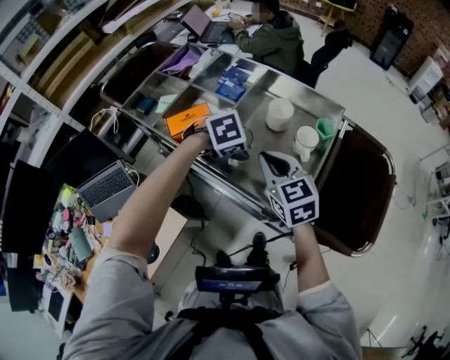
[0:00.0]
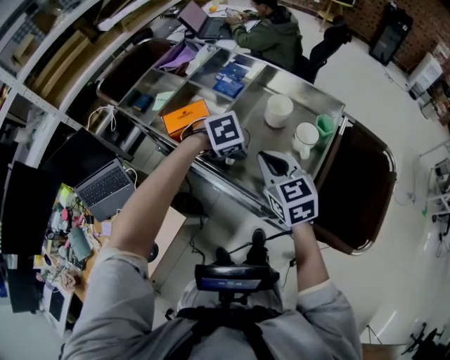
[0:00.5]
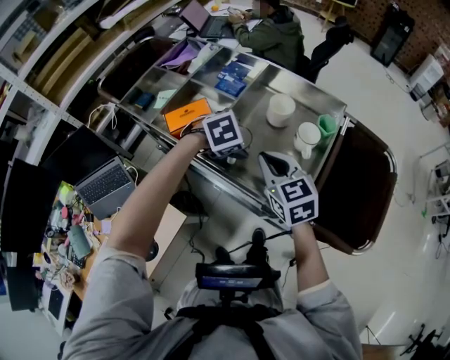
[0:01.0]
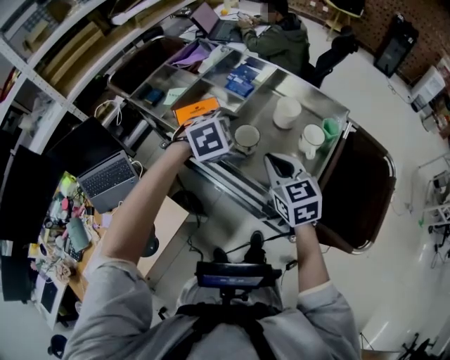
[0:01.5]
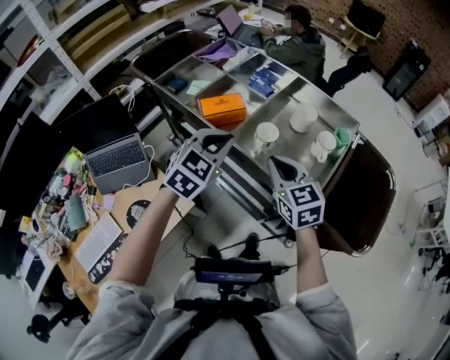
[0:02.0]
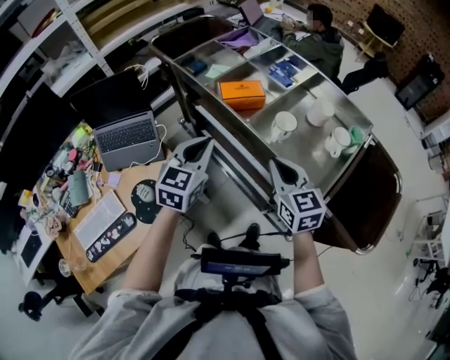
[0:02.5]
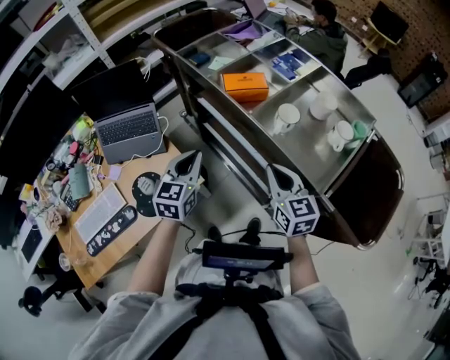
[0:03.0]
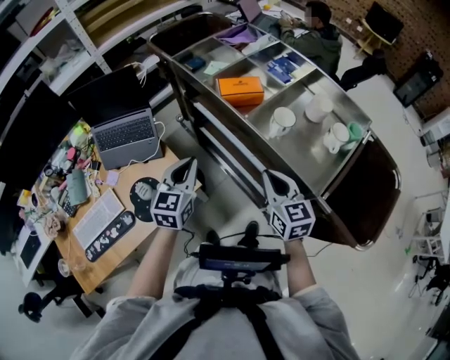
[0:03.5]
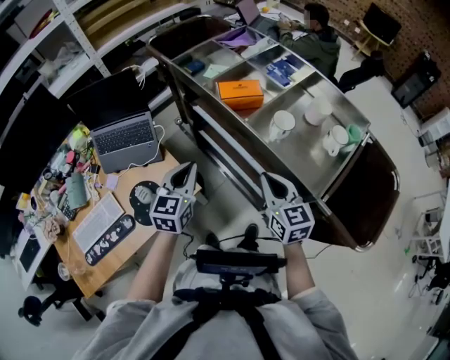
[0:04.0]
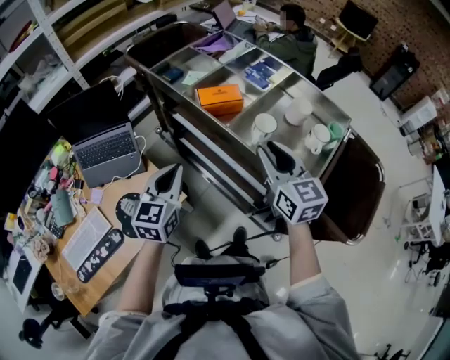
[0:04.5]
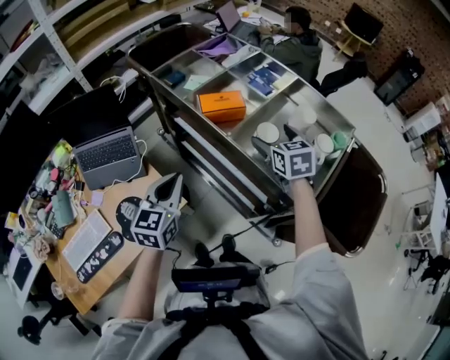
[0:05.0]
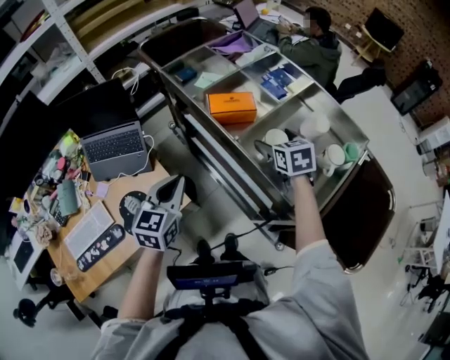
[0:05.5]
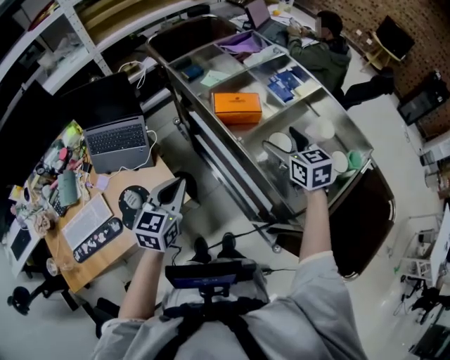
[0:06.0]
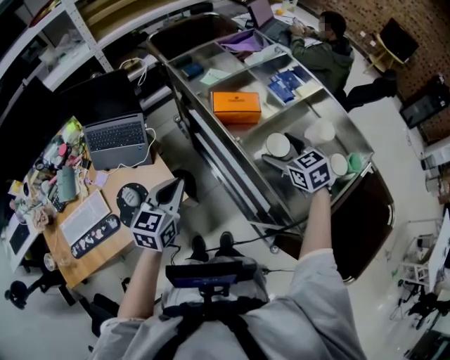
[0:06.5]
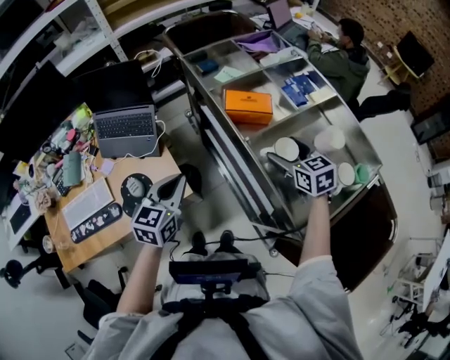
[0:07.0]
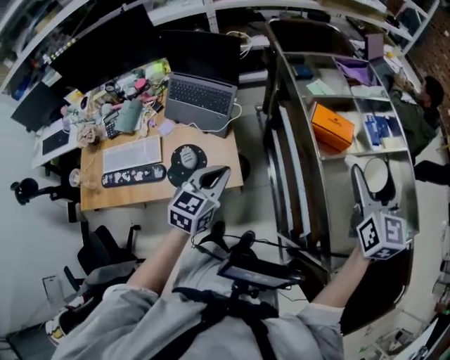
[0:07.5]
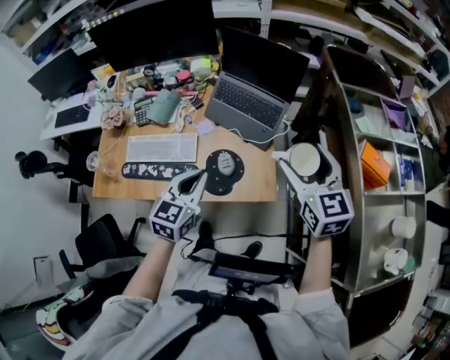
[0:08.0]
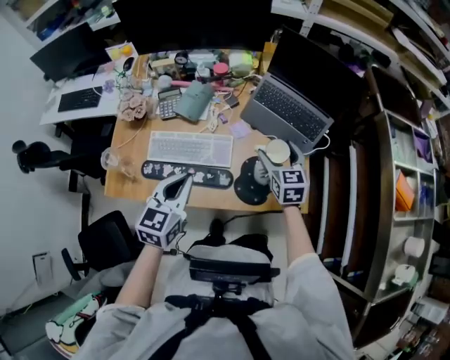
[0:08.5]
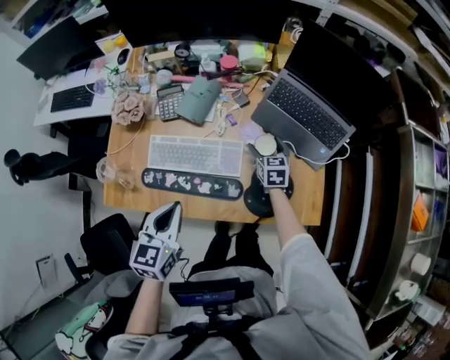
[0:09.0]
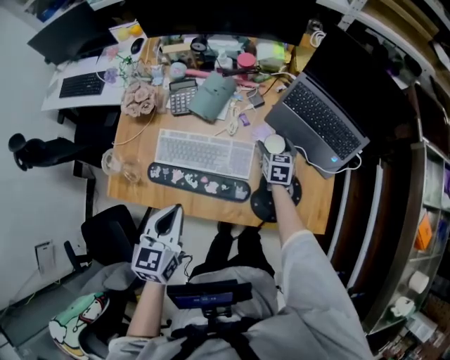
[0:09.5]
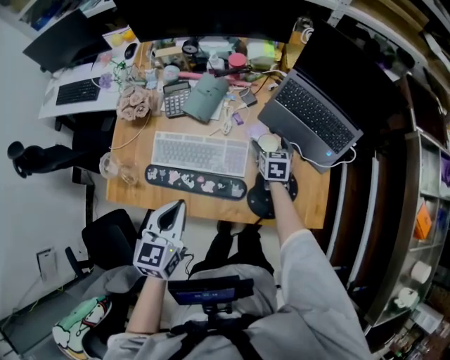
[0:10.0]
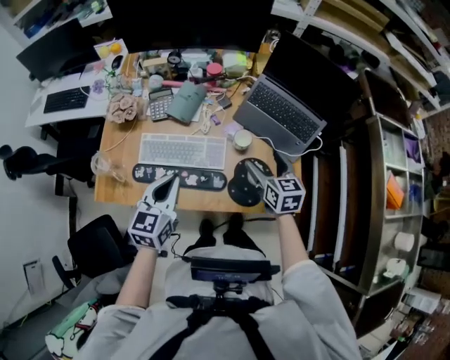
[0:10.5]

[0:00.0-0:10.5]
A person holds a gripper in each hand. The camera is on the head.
0:00.0 to 0:02.0: The right gripper moves backward, some 5 cm. The left gripper travels upward, backward and to the left by roughly 20 cm, tips its fingers upward by about 40 degrees, and closes.
0:02.0 to 0:04.0: The left gripper is displaced to the left, downward and backward by about 20 cm, and turns by approximately 40 degrees; the right gripper travels backward, to the left and downward by roughly 10 cm.
0:04.0 to 0:06.5: The right gripper shifts some 20 cm forward and to the right, turns by roughly 30 degrees, and opens up.
0:06.5 to 0:08.5: Both grippers are carried approximately 60 cm. The right gripper turns by some 20 degrees, while the left gripper rotates about 40 degrees.
0:08.5 to 0:10.5: The right gripper travels downward and back again, roughly 20 cm each way.

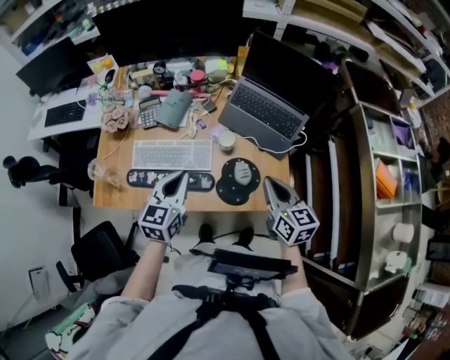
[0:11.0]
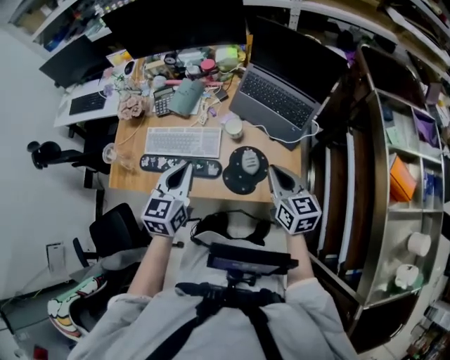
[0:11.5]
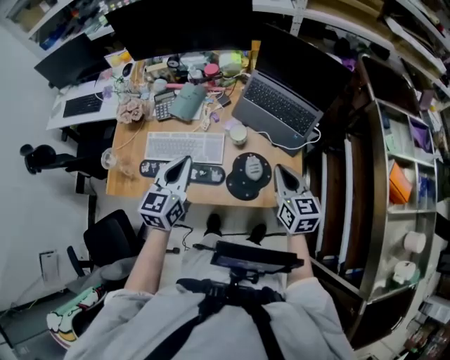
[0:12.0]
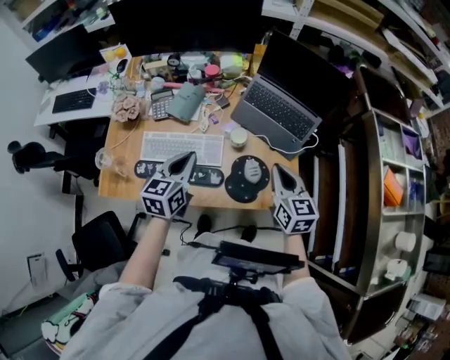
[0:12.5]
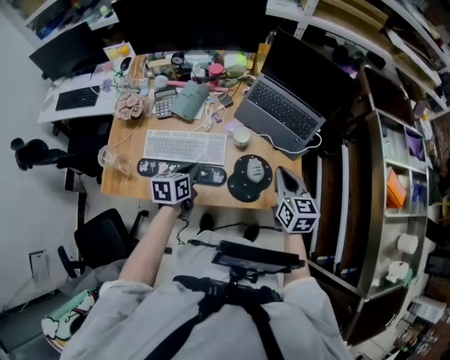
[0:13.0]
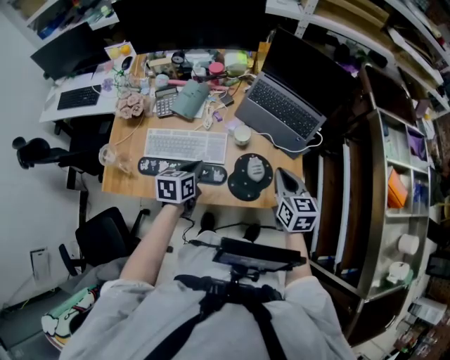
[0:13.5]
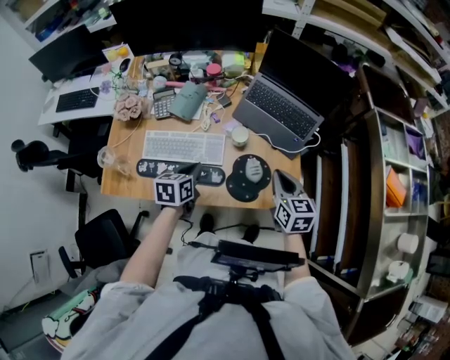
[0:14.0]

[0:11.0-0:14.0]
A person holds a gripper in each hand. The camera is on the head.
0:11.0 to 0:12.5: The grippers move only a little.
0:12.5 to 0:14.0: The left gripper is displaced downward by about 10 cm, and changes its angle by approximately 20 degrees.

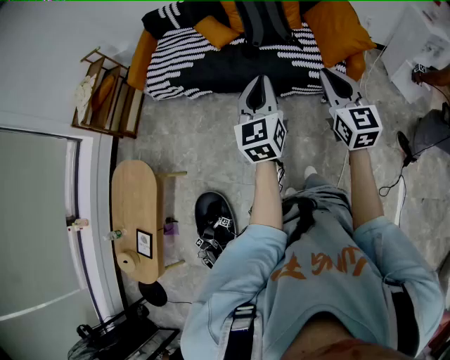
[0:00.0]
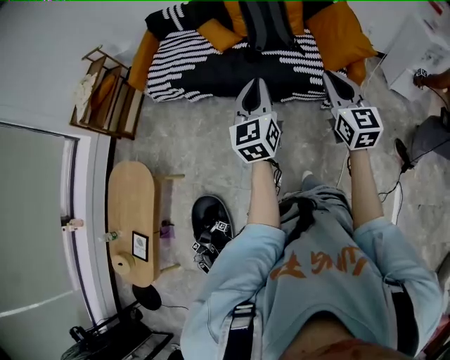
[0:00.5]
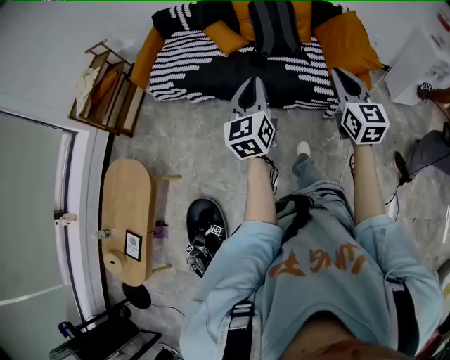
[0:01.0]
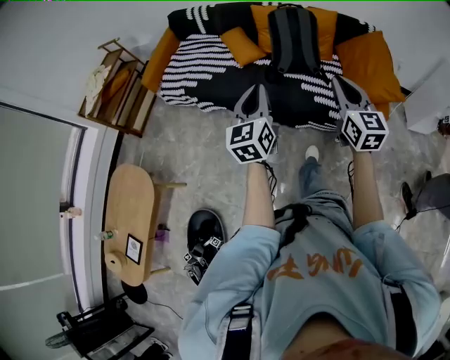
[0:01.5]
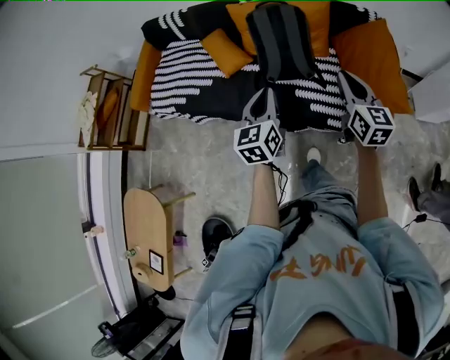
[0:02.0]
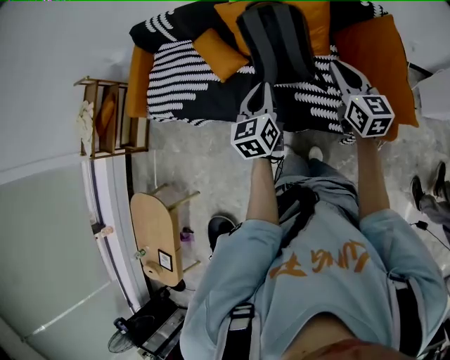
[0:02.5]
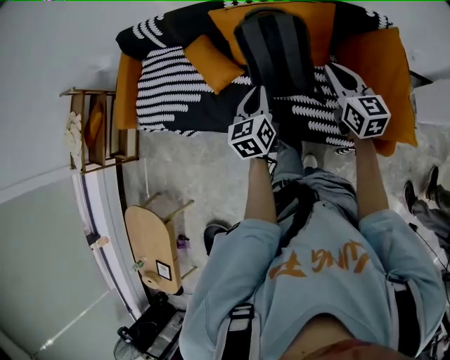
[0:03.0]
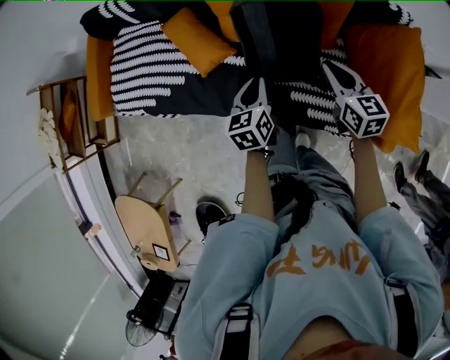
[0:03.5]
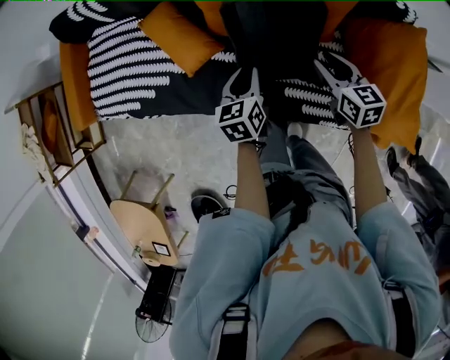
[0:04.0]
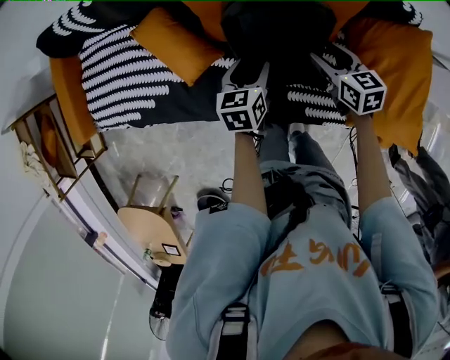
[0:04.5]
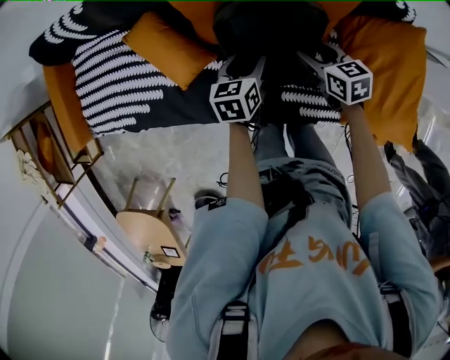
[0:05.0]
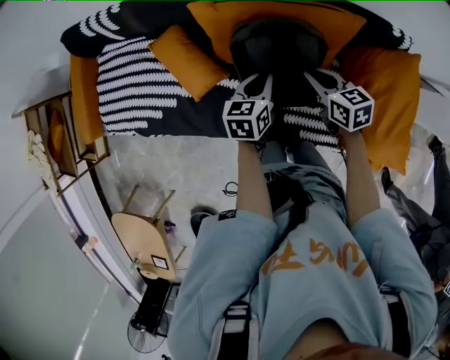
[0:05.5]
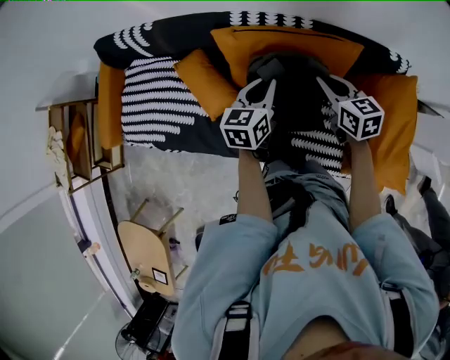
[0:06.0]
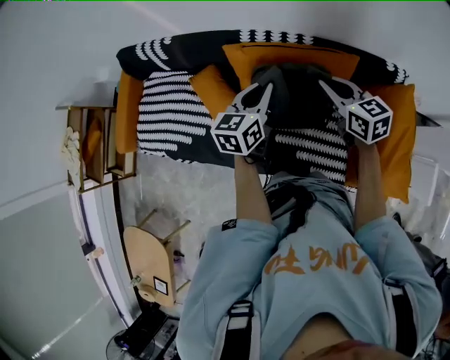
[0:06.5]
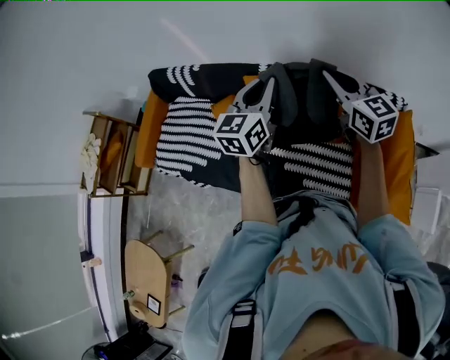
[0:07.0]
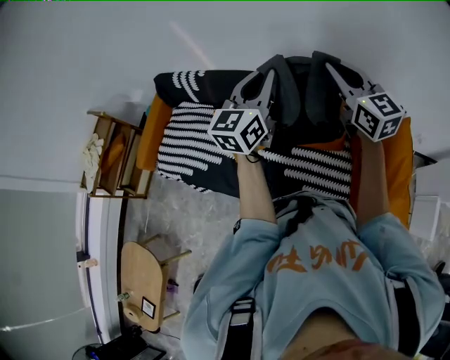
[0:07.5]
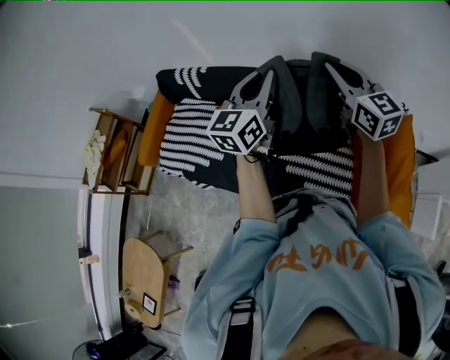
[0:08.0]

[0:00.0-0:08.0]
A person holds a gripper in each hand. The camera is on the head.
0:00.0 to 0:02.0: The grippers both shift forward by approximately 40 cm.
0:02.0 to 0:04.0: The two grippers go some 40 cm forward and downward. The right gripper swivels approximately 30 degrees, and opens up, while the left gripper turns by approximately 30 degrees.
0:04.0 to 0:06.0: The right gripper travels forward and upward by roughly 15 cm, and closes. The left gripper goes approximately 20 cm upward, forward and to the right, and opens and closes again.
0:06.0 to 0:08.0: Both grippers move upward, approximately 30 cm. The left gripper changes its angle by approximately 30 degrees. The right gripper points its fingers roughly 30 degrees further upward.

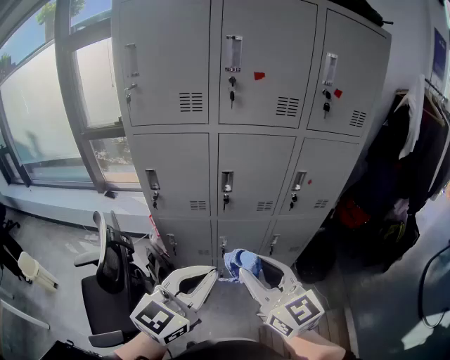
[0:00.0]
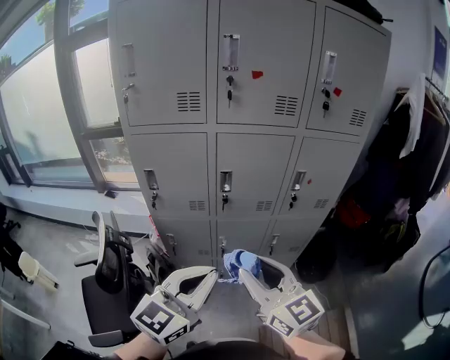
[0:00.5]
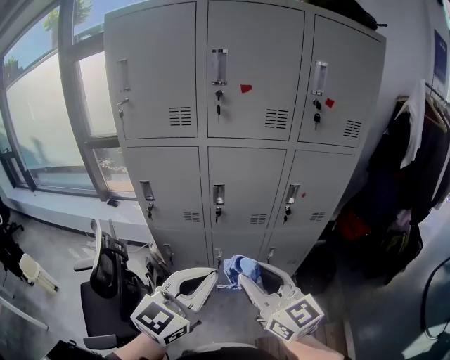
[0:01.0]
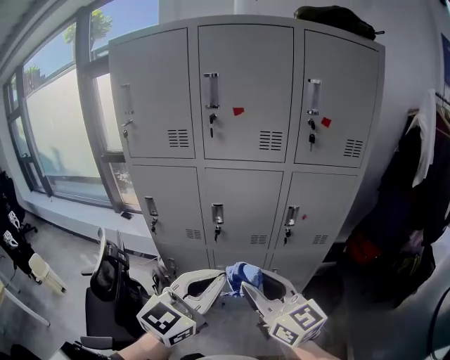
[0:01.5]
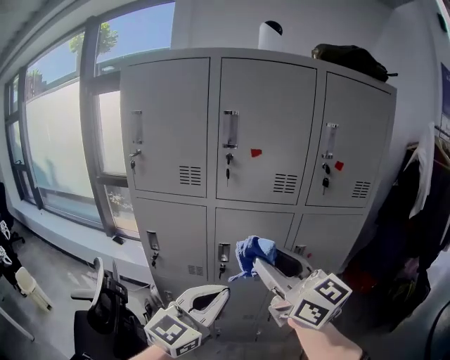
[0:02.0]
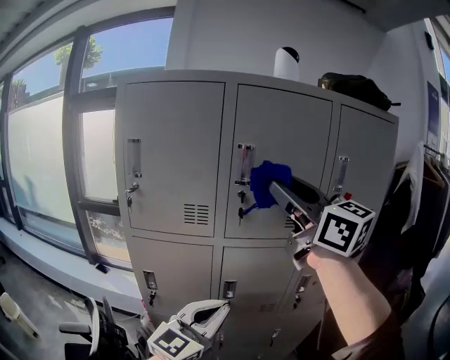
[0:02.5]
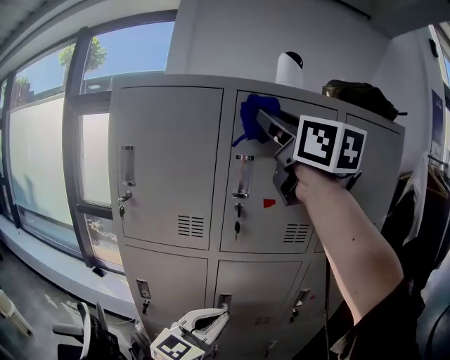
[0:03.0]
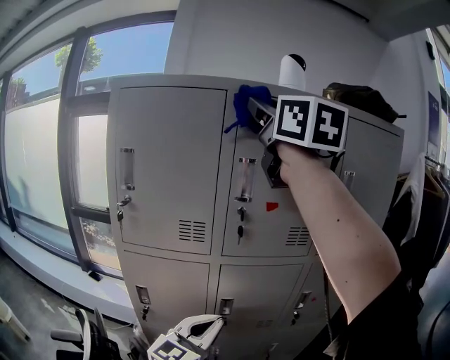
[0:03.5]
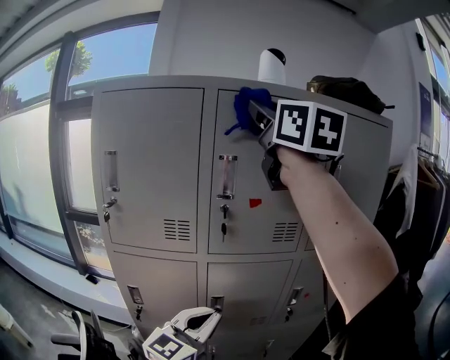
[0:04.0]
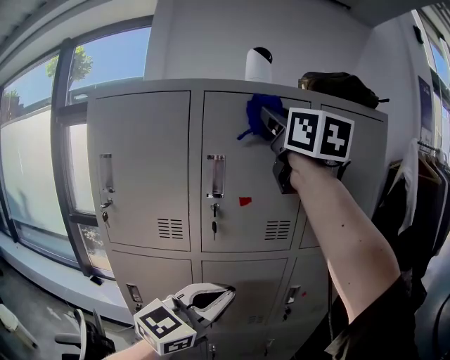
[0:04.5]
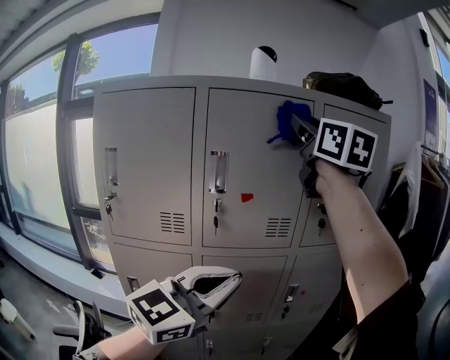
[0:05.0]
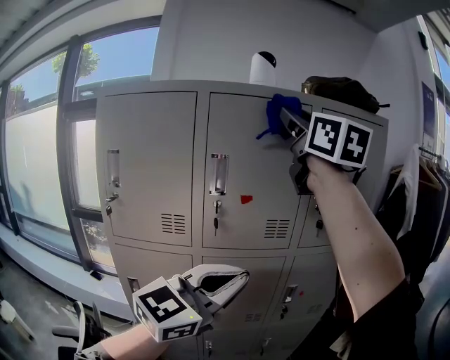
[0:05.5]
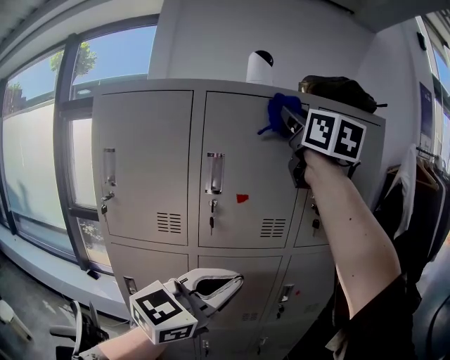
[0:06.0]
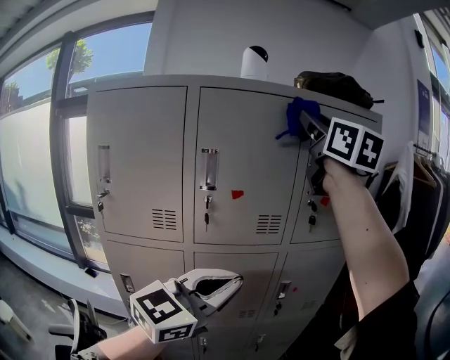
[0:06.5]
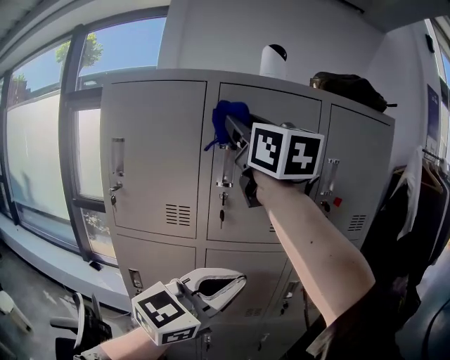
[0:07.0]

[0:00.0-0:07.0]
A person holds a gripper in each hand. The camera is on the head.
0:00.0 to 0:02.0: The right gripper shifts approximately 20 cm upward and forward; the left gripper is displaced forward, upward and to the right by approximately 15 cm.
0:02.0 to 0:03.5: The right gripper goes about 40 cm upward and forward, and swivels about 30 degrees, while the left gripper heads forward, covering roughly 10 cm.
0:03.5 to 0:05.0: The right gripper is displaced to the right by roughly 15 cm; the left gripper is displaced upward and to the right by about 15 cm.
0:05.0 to 0:07.0: The right gripper travels to the left and backward by roughly 15 cm.
